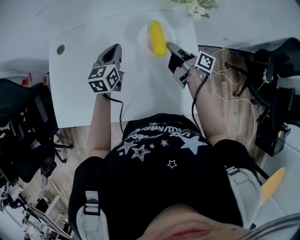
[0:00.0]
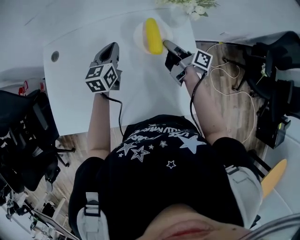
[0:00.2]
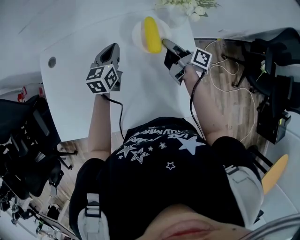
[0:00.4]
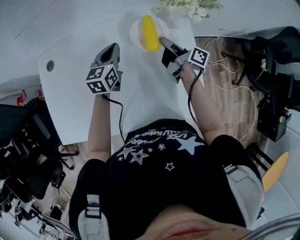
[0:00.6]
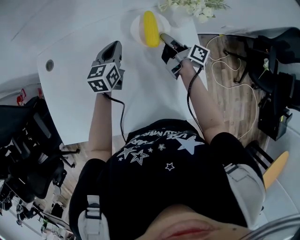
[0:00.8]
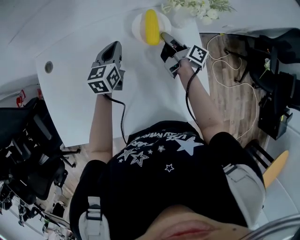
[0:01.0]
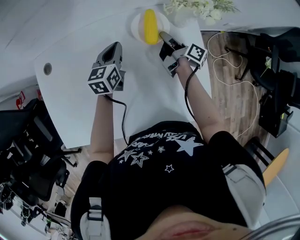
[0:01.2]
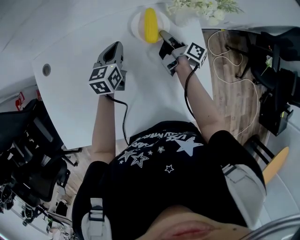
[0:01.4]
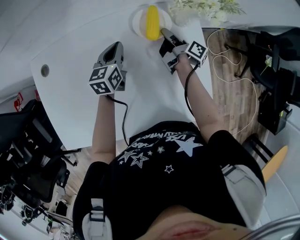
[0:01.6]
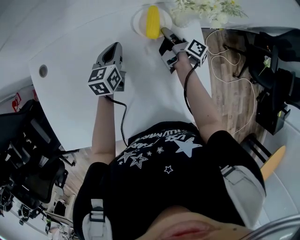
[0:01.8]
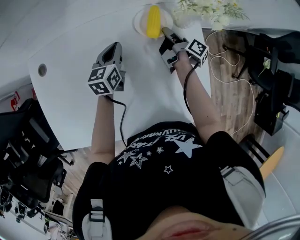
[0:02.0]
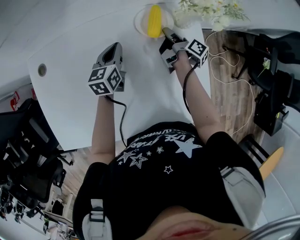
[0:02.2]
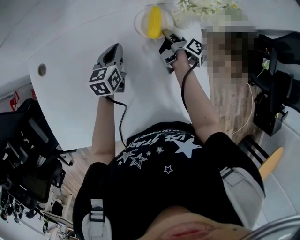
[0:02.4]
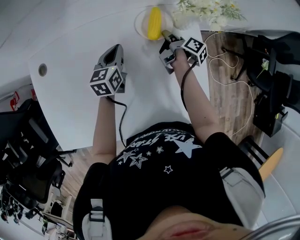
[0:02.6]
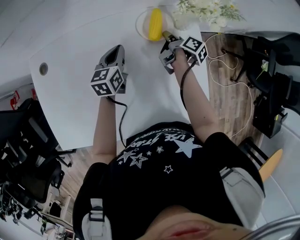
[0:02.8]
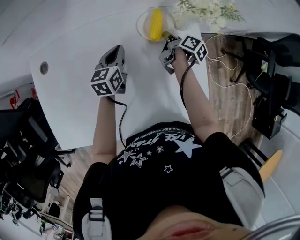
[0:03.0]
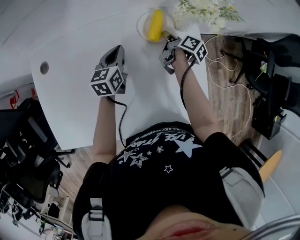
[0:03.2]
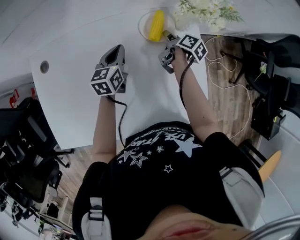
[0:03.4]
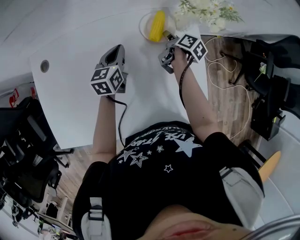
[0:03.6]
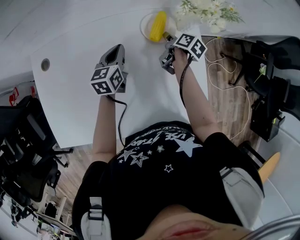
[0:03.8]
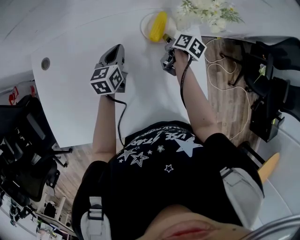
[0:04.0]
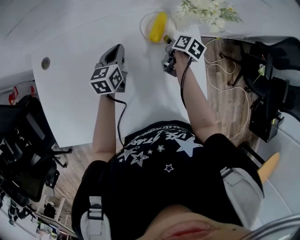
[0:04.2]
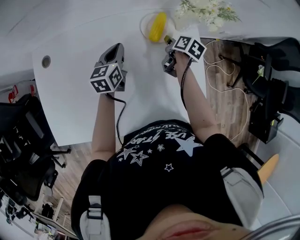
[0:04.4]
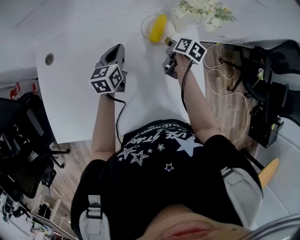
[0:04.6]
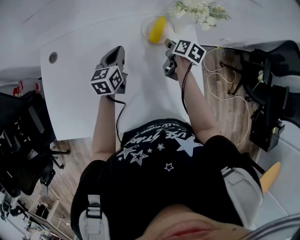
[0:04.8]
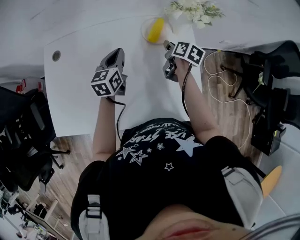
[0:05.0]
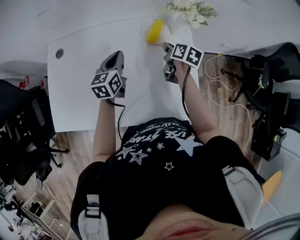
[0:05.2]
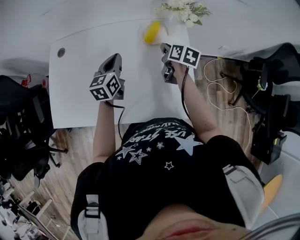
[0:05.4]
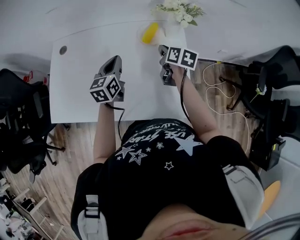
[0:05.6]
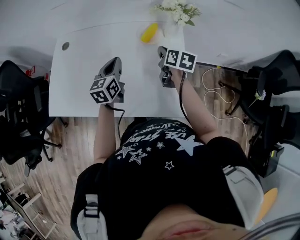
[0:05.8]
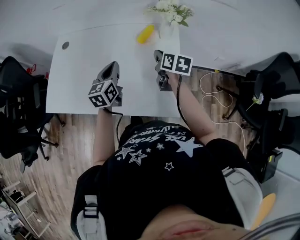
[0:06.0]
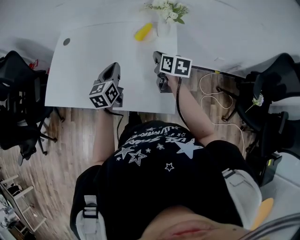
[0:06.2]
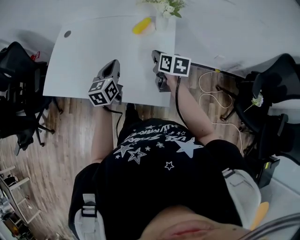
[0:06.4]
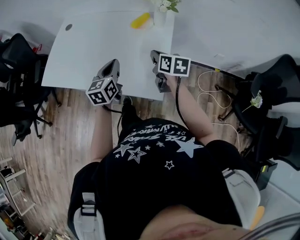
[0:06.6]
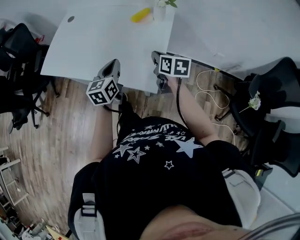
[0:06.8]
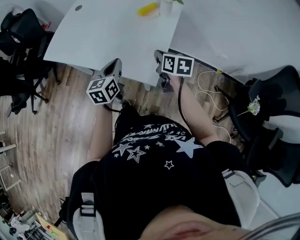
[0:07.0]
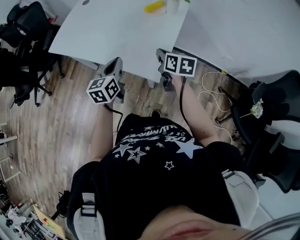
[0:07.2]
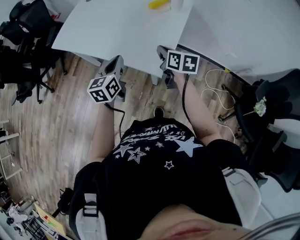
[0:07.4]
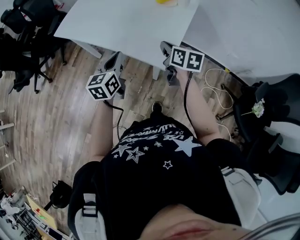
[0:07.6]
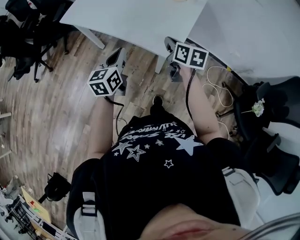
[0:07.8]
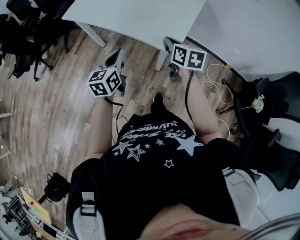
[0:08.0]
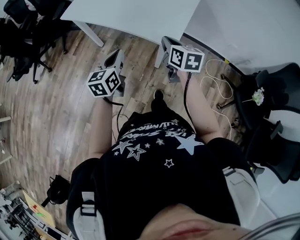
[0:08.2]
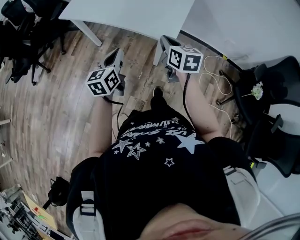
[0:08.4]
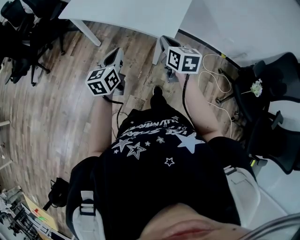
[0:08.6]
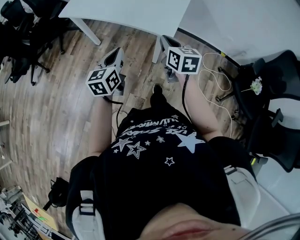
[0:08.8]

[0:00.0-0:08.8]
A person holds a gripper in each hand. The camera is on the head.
0:00.0 to 0:01.4: The left gripper changes place by roughly 15 cm.
0:04.4 to 0:05.8: The left gripper changes place by approximately 20 cm.
0:05.8 to 0:07.4: The left gripper ends up approximately 30 cm from where it was.
0:07.4 to 0:08.8: The left gripper changes place by approximately 25 cm.

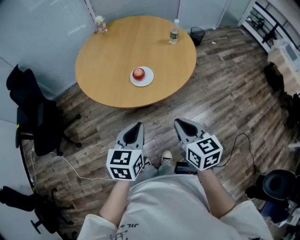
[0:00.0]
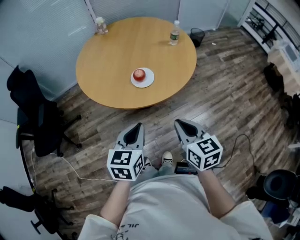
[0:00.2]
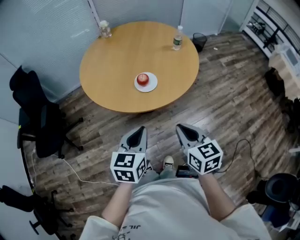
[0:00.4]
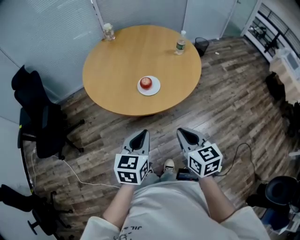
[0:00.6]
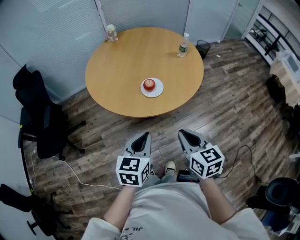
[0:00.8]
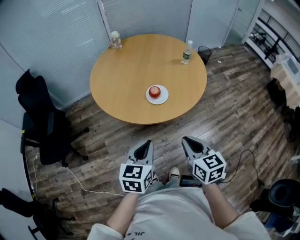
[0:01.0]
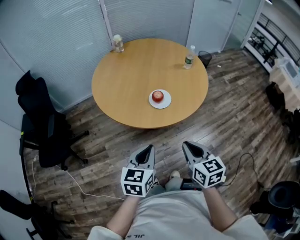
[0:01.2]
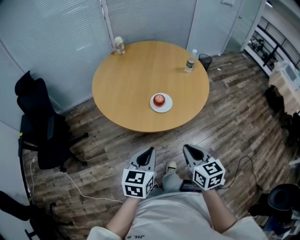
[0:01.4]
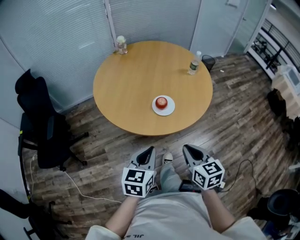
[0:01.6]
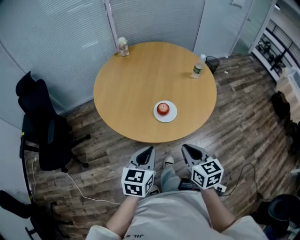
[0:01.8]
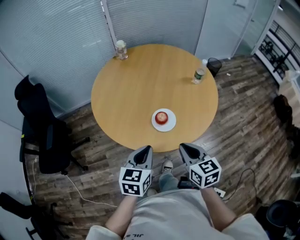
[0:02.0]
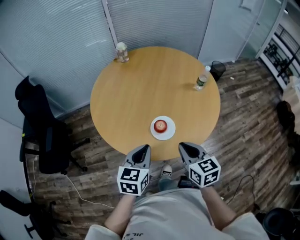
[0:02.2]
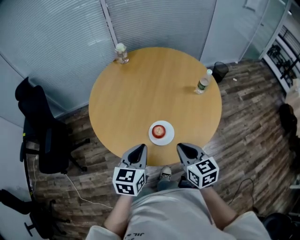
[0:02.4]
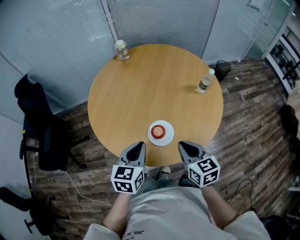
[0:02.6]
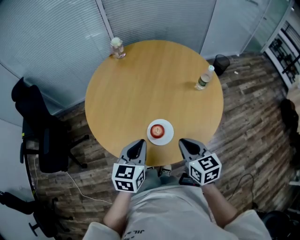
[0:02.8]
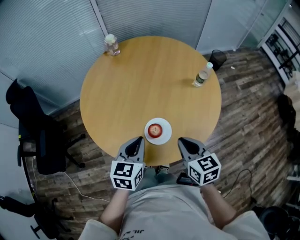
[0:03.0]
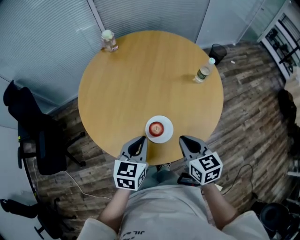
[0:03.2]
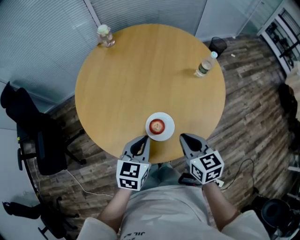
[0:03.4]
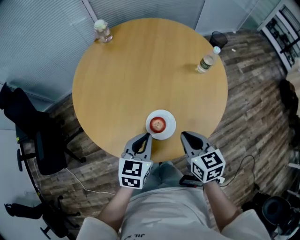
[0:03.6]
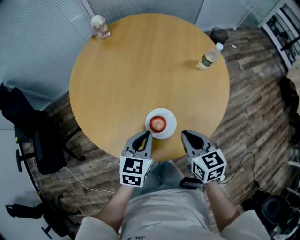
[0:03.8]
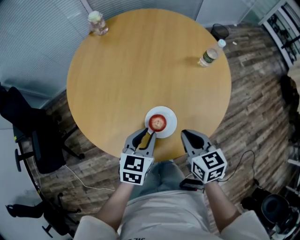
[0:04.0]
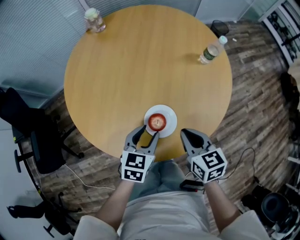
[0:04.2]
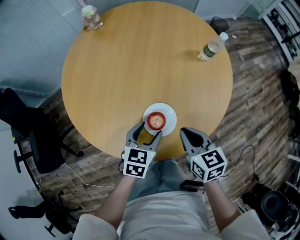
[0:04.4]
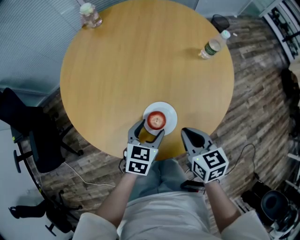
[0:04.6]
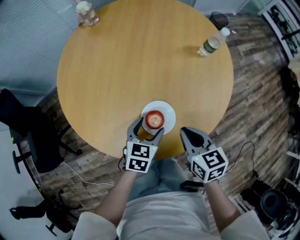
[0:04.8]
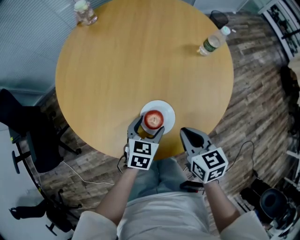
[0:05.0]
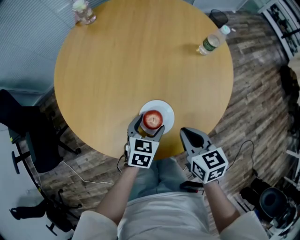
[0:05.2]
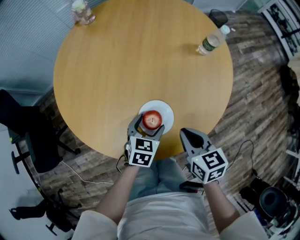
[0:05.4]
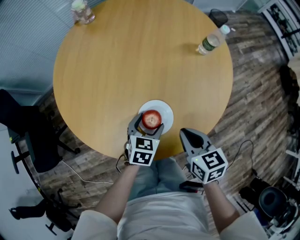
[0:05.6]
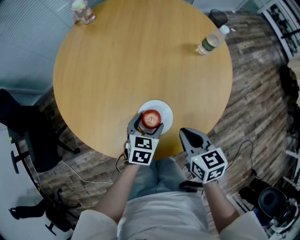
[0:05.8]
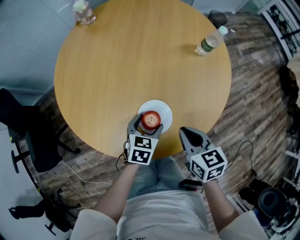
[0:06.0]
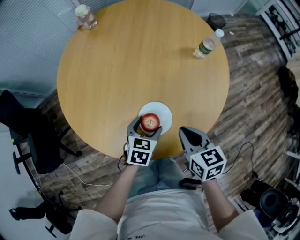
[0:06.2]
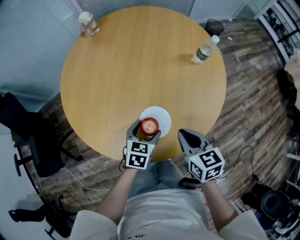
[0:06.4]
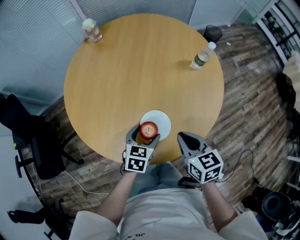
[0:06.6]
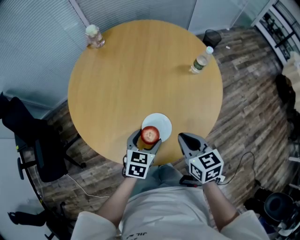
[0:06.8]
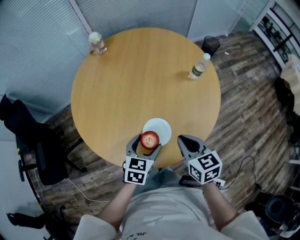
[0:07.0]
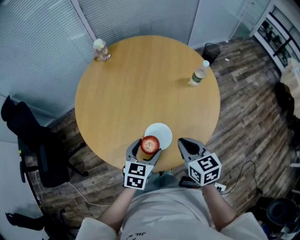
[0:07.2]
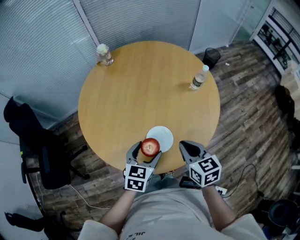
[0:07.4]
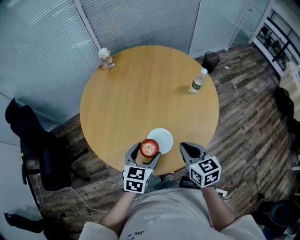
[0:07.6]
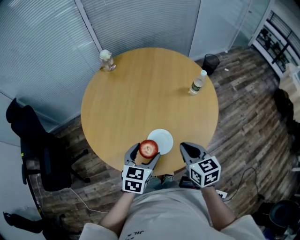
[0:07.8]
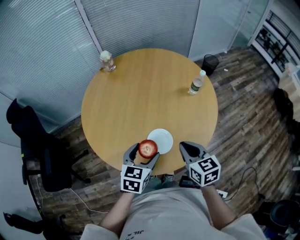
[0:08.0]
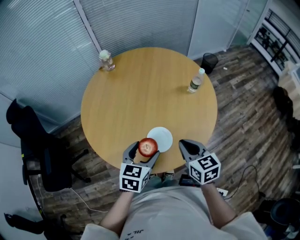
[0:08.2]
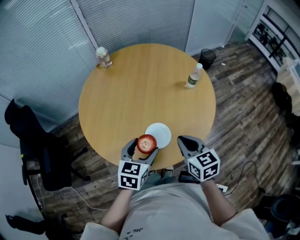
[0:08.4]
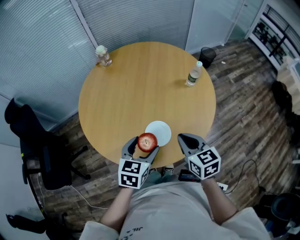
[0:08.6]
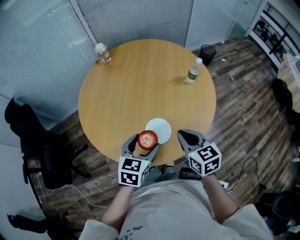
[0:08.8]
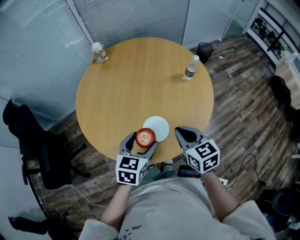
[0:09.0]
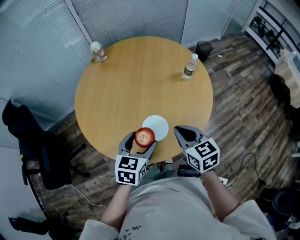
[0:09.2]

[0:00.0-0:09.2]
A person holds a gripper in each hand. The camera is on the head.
0:00.0 to 0:01.6: Both grippers move to the left, about 5 cm.
0:01.6 to 0:03.0: The two grippers go some 25 cm forward.
0:03.0 to 0:04.6: The right gripper moves downward, roughly 10 cm. The left gripper shifts about 15 cm downward, and opens.
0:04.6 to 0:06.2: The grippers stay close to where they were, moving slightly.
0:06.2 to 0:07.6: The left gripper travels upward by some 15 cm, while the right gripper shifts approximately 10 cm upward.
0:07.6 to 0:09.2: The grippers stay close to where they were, moving slightly.

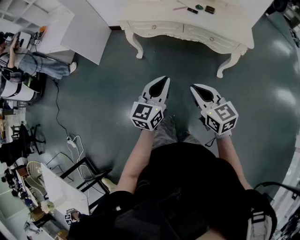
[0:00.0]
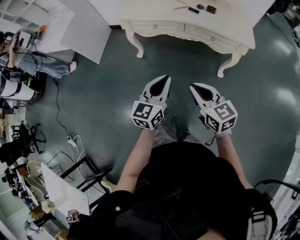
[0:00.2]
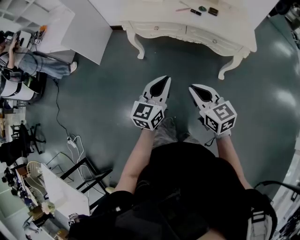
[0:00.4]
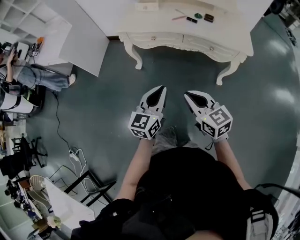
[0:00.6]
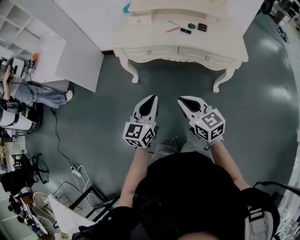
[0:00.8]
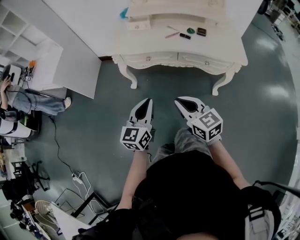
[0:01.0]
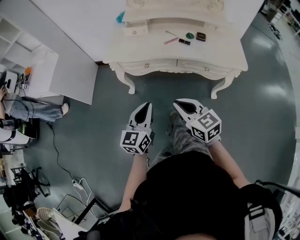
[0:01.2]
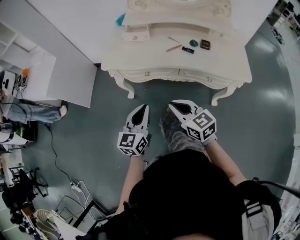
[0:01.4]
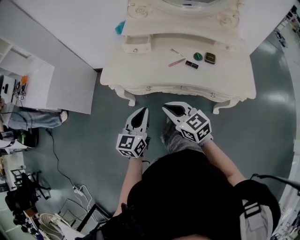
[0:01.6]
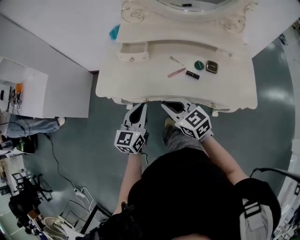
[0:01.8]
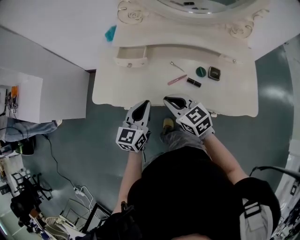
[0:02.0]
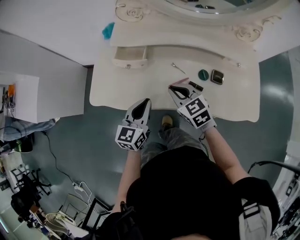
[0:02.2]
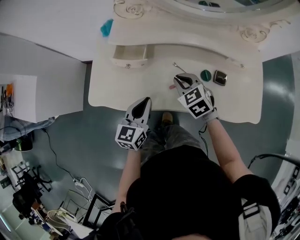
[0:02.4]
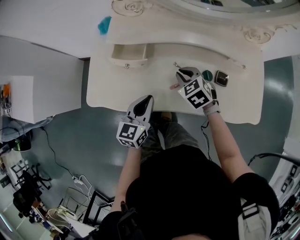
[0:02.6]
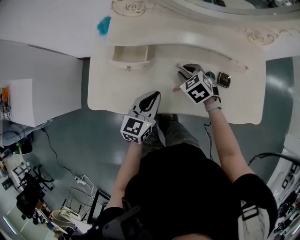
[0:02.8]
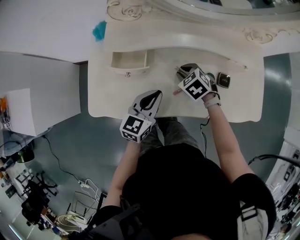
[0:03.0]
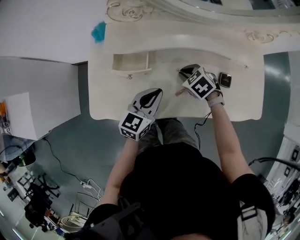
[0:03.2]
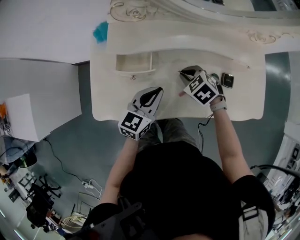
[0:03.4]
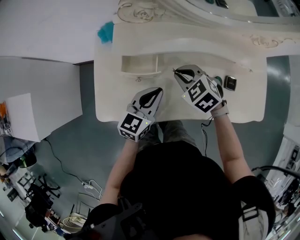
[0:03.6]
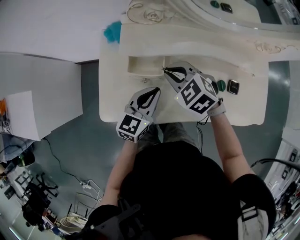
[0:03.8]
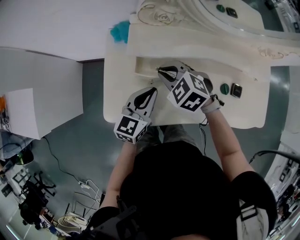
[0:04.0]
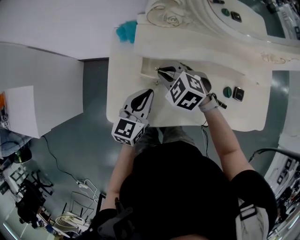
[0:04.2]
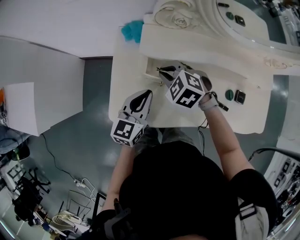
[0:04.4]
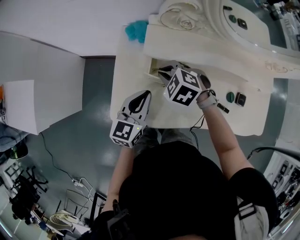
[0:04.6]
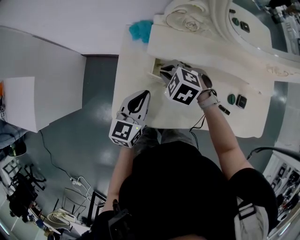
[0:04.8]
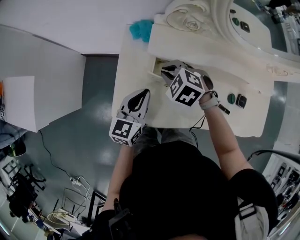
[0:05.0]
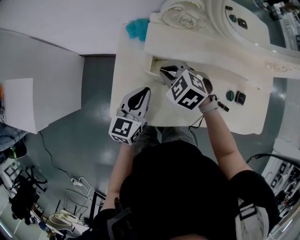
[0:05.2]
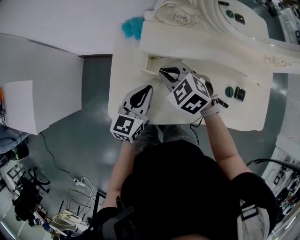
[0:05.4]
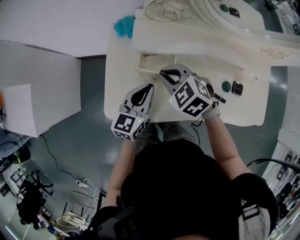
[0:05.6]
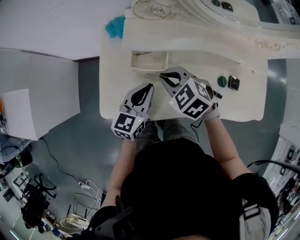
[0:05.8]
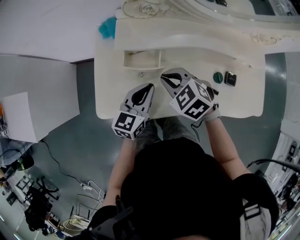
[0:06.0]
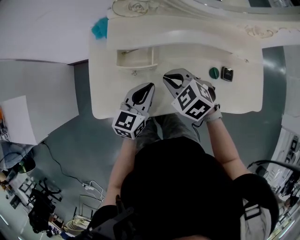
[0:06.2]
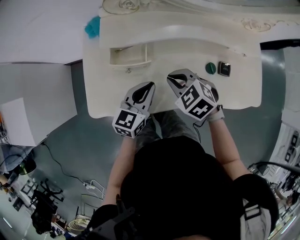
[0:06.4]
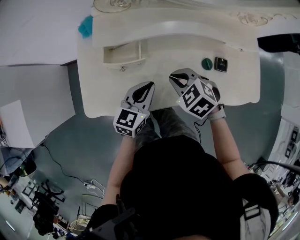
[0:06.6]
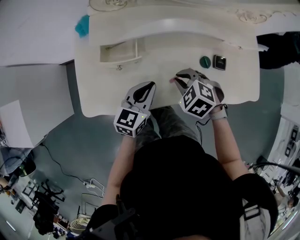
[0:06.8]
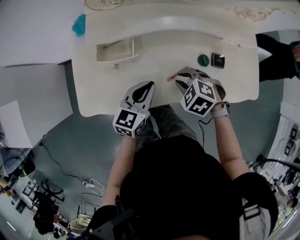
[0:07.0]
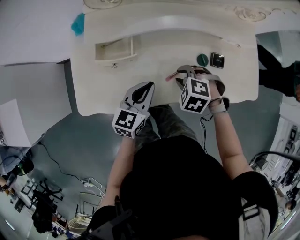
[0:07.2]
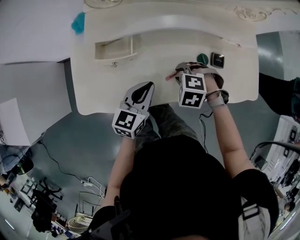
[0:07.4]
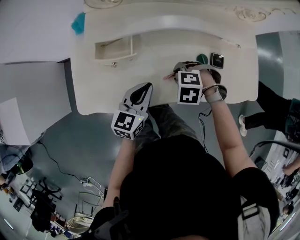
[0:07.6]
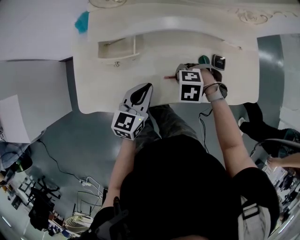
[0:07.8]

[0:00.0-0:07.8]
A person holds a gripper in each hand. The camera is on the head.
0:00.0 to 0:01.6: Both grippers travel together forward, approximately 30 cm.
0:01.6 to 0:03.2: The left gripper goes roughly 25 cm forward, and swivels about 30 degrees; the right gripper moves forward and downward, approximately 35 cm, and tips its fingers downward by about 40 degrees.
0:03.2 to 0:04.6: Both grippers move to the left, some 20 cm. The right gripper swivels approximately 30 degrees.
0:04.6 to 0:06.2: The right gripper travels to the right and backward by roughly 15 cm. The left gripper shifts approximately 10 cm to the right.
0:06.2 to 0:07.8: The left gripper changes place by roughly 5 cm. The right gripper changes place by approximately 15 cm, and tilts its fingers approximately 30 degrees downward.
